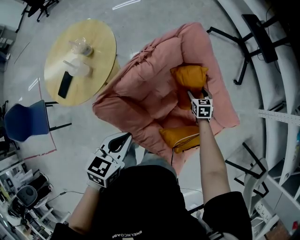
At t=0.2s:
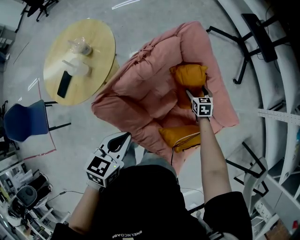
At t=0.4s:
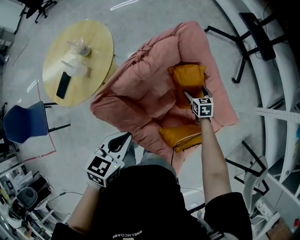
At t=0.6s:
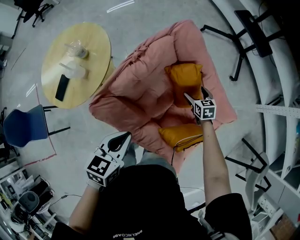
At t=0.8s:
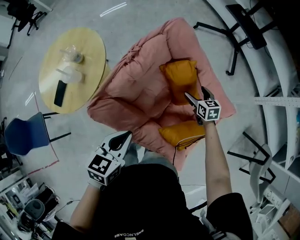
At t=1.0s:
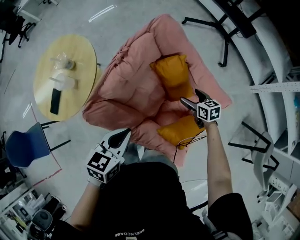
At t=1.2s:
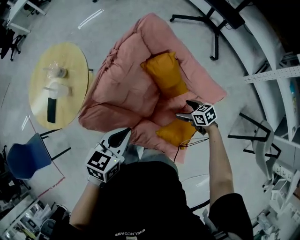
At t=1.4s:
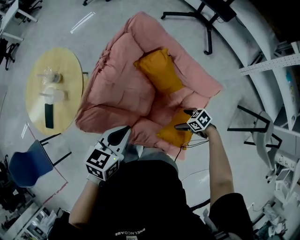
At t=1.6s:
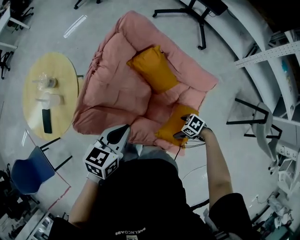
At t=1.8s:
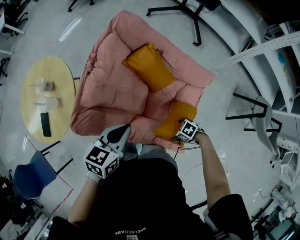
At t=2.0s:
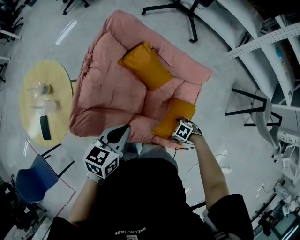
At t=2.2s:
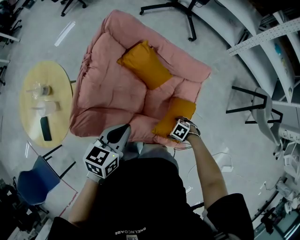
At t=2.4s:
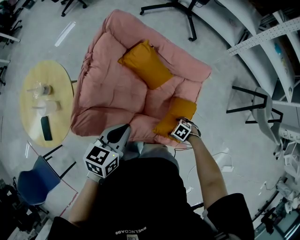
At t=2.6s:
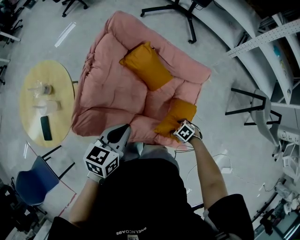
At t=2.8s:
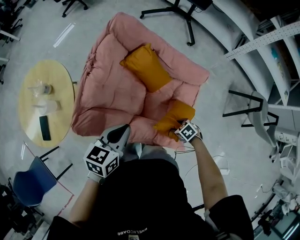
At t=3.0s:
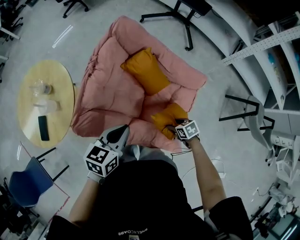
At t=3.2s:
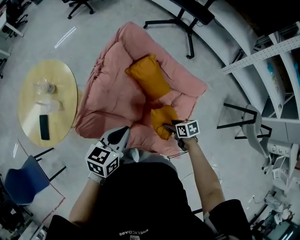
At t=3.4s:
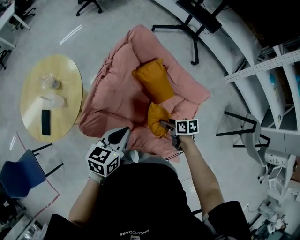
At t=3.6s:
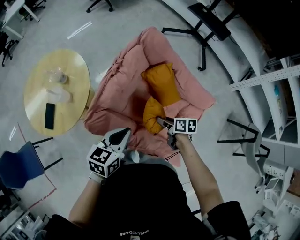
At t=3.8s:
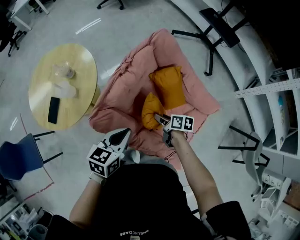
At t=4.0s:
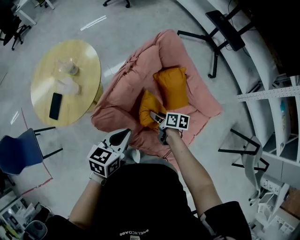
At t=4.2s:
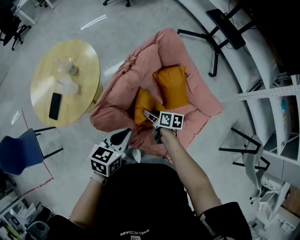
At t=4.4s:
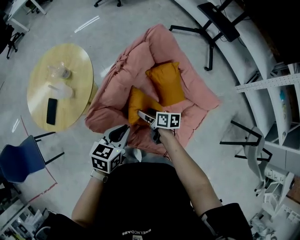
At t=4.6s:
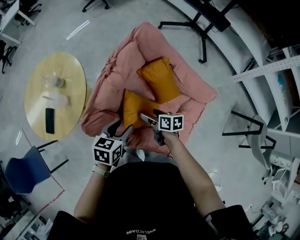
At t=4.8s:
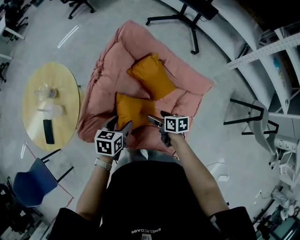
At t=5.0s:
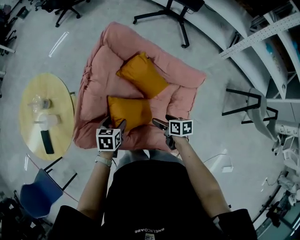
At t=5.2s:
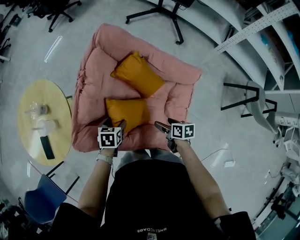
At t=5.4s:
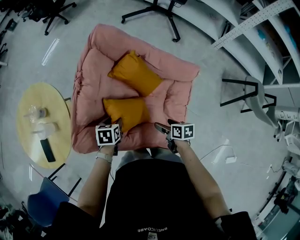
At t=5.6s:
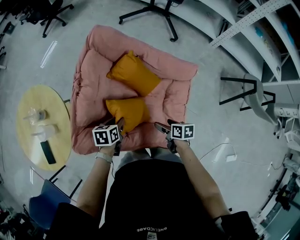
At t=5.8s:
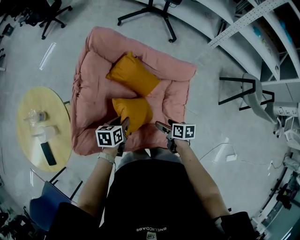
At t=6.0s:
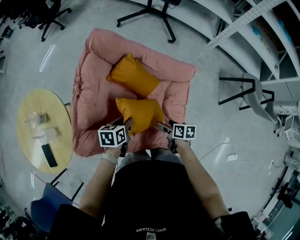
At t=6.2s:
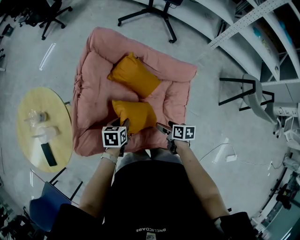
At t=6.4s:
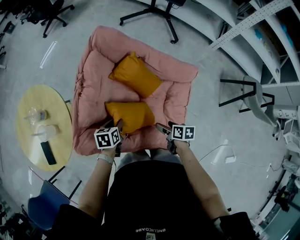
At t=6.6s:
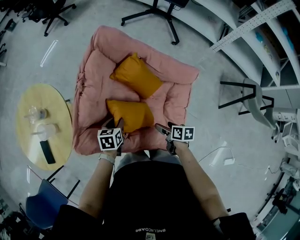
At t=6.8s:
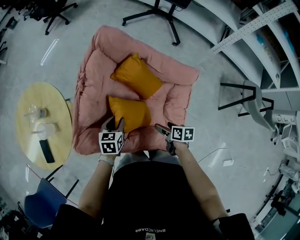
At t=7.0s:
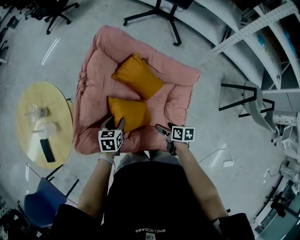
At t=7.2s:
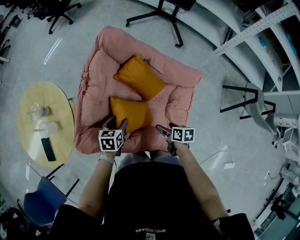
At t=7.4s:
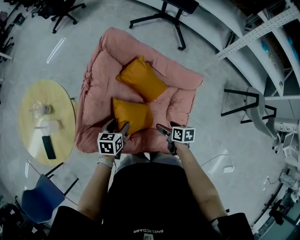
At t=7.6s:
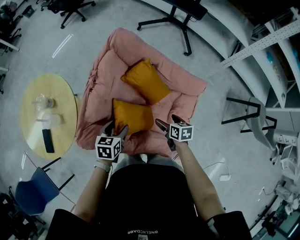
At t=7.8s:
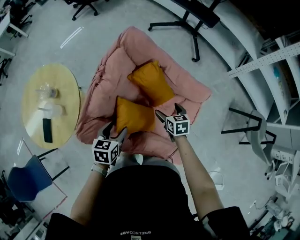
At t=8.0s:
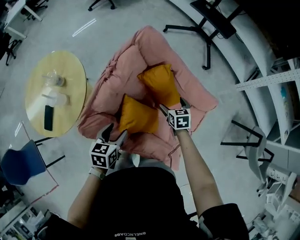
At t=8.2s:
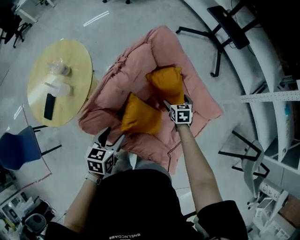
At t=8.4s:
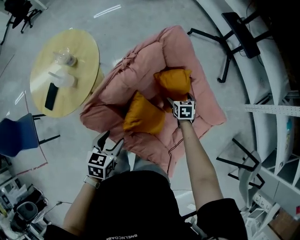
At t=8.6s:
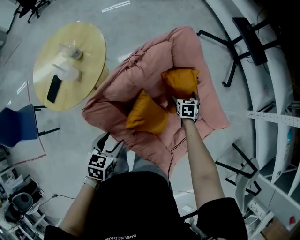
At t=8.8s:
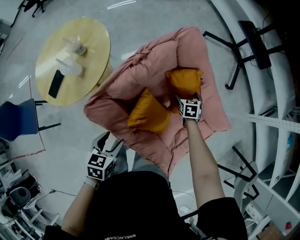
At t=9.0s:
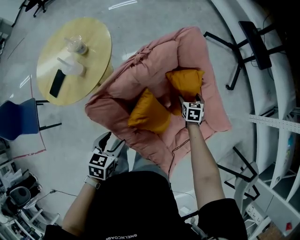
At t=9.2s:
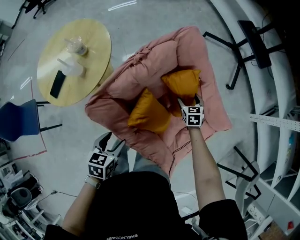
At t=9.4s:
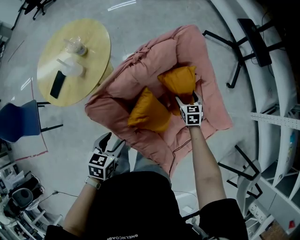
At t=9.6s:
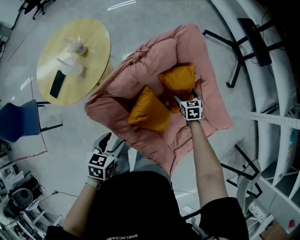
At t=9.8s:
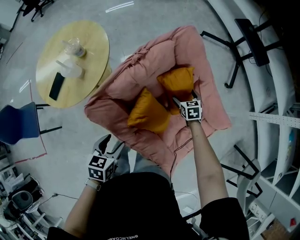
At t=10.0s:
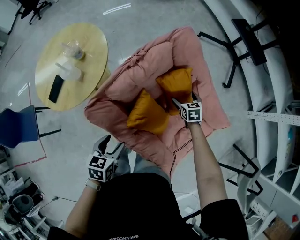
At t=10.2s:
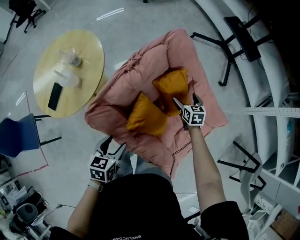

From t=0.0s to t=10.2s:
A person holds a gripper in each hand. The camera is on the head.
From t=0.0s to t=1.4s: The right gripper ends up roughly 25 cm from where it was, and rotates about 40 degrees. Meanwhile the left gripper moves some 5 cm, and rotates roughly 20 degrees.
From t=1.4s to t=3.0s: The right gripper swivels about 30 degrees, and closes up.
From t=3.0s to t=4.4s: The right gripper is displaced to the left and forward by approximately 25 cm, and swivels some 40 degrees, while the left gripper shifts approximately 5 cm to the left.
From t=4.4s to t=5.8s: The right gripper shifts by some 25 cm, and rotates approximately 30 degrees. The left gripper travels downward by roughly 15 cm, changes its angle by some 20 degrees, and opens, then closes once more.
From t=5.8s to t=7.2s: The left gripper changes place by some 5 cm, and opens its fingers.
From t=7.2s to t=8.8s: The right gripper goes approximately 30 cm forward, and rolls counterclockwise, seen from behind, by roughly 50 degrees. Meanwhile the left gripper moves backward, upward and to the left, roughly 15 cm, and turns by about 30 degrees.
From t=8.8s to t=10.2s: The right gripper shifts roughly 5 cm upward.

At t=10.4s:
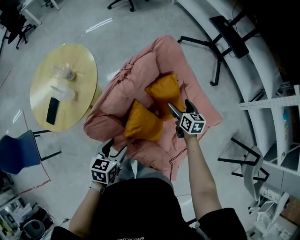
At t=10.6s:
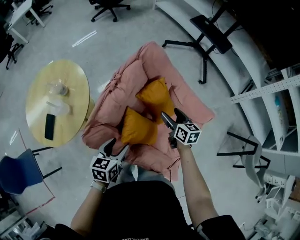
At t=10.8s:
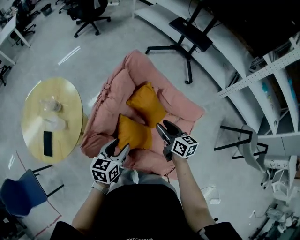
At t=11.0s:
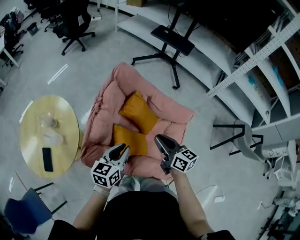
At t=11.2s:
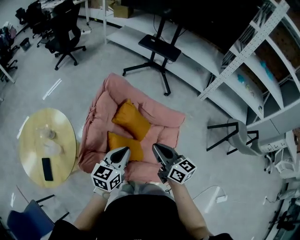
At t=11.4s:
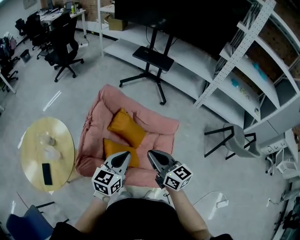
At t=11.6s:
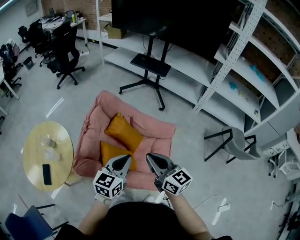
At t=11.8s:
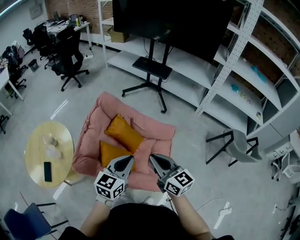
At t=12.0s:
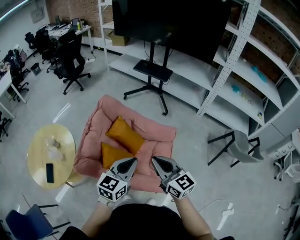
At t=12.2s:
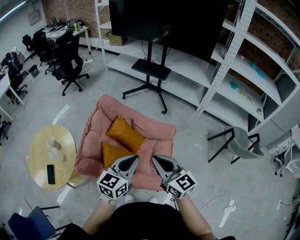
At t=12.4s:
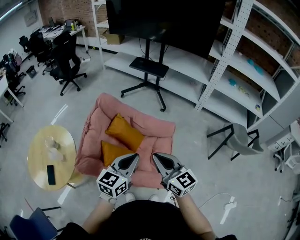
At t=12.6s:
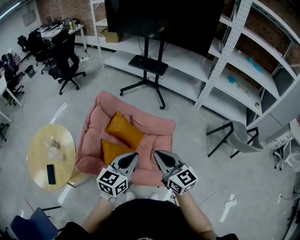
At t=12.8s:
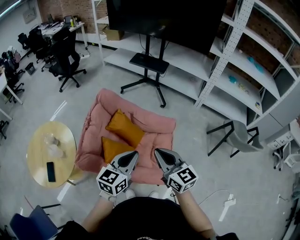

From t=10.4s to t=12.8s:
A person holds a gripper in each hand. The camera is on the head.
From t=10.4s to t=11.6s: The right gripper travels upward and backward by roughly 40 cm, rotates some 30 degrees, and closes, while the left gripper heads upward and to the right, covering approximately 30 cm, changes its angle by some 50 degrees, and closes its fingers.
From t=11.6s to t=12.8s: The left gripper changes place by about 5 cm. Meanwhile the right gripper ends up roughly 5 cm from where it was.

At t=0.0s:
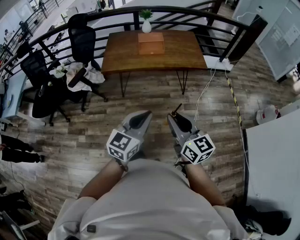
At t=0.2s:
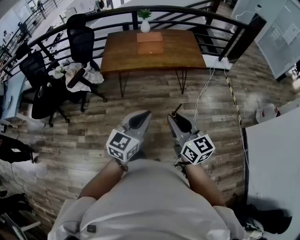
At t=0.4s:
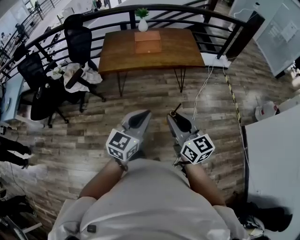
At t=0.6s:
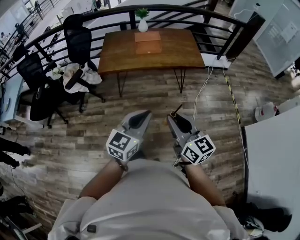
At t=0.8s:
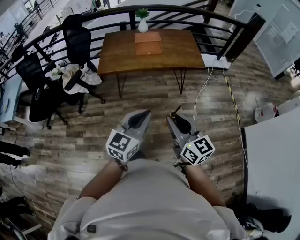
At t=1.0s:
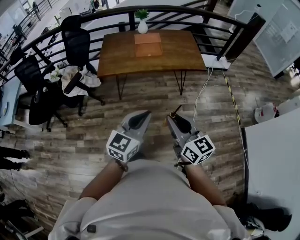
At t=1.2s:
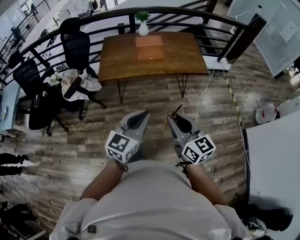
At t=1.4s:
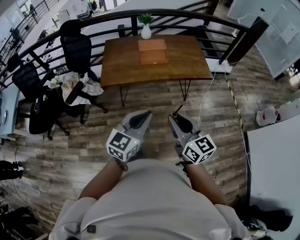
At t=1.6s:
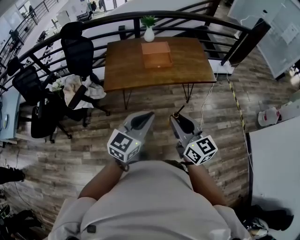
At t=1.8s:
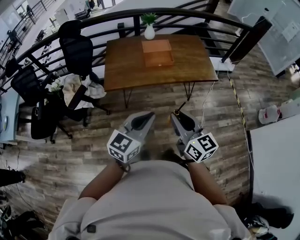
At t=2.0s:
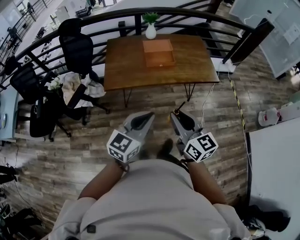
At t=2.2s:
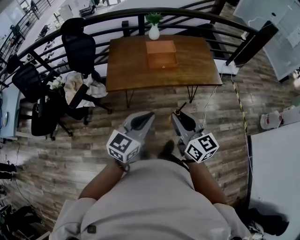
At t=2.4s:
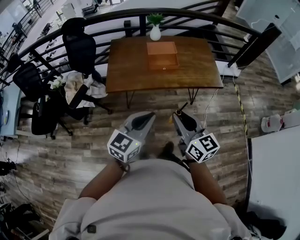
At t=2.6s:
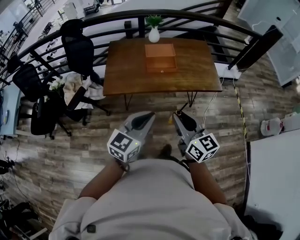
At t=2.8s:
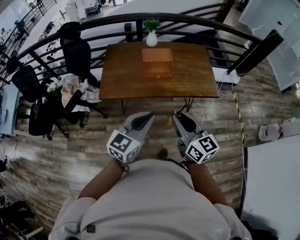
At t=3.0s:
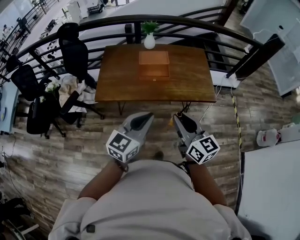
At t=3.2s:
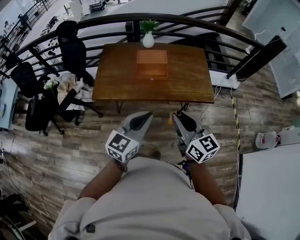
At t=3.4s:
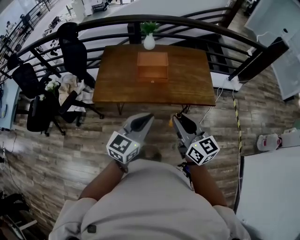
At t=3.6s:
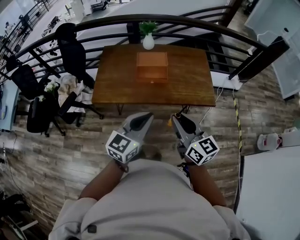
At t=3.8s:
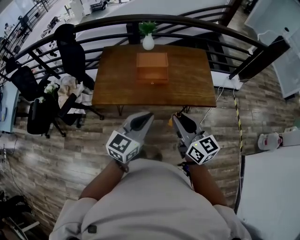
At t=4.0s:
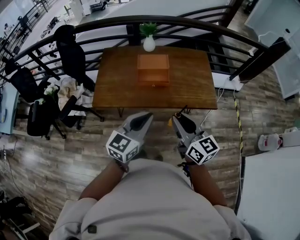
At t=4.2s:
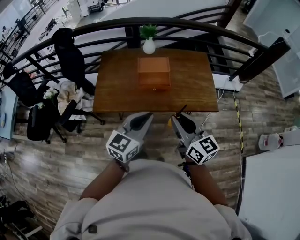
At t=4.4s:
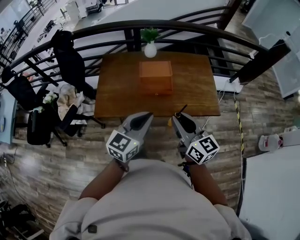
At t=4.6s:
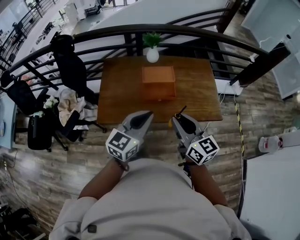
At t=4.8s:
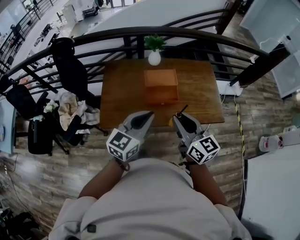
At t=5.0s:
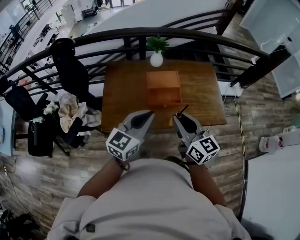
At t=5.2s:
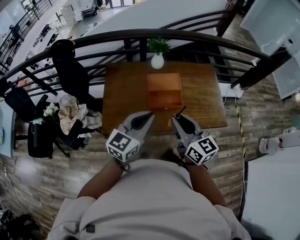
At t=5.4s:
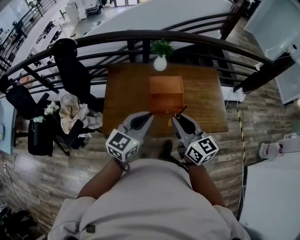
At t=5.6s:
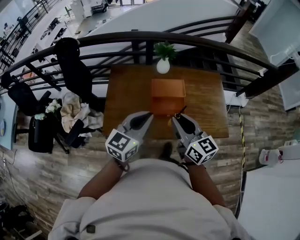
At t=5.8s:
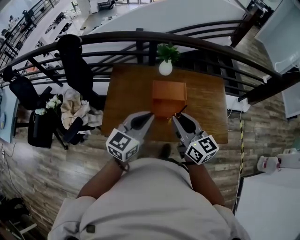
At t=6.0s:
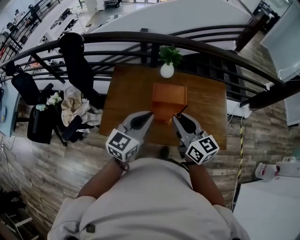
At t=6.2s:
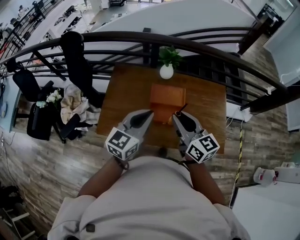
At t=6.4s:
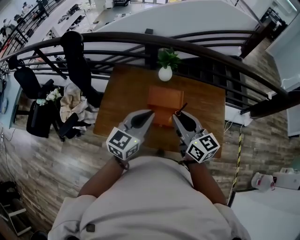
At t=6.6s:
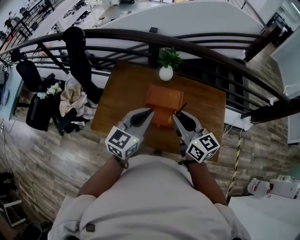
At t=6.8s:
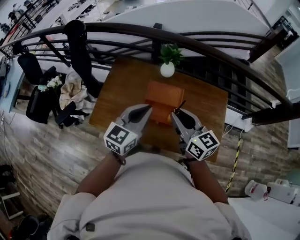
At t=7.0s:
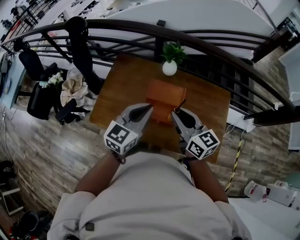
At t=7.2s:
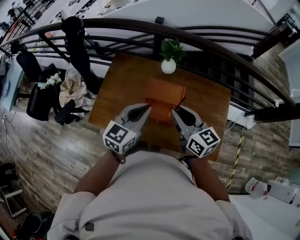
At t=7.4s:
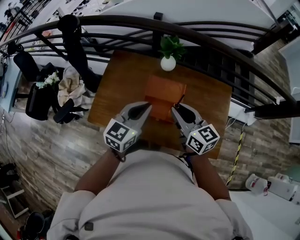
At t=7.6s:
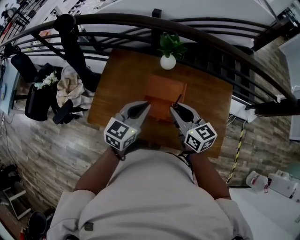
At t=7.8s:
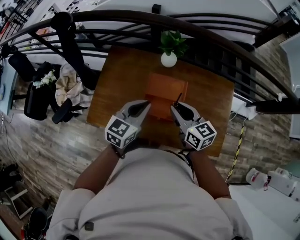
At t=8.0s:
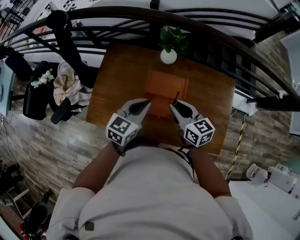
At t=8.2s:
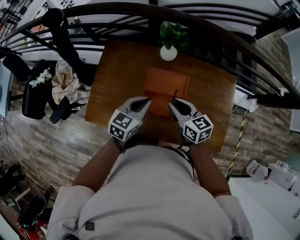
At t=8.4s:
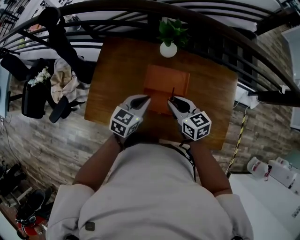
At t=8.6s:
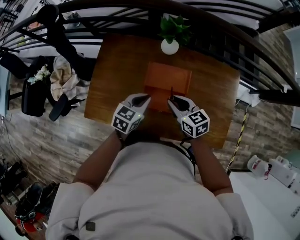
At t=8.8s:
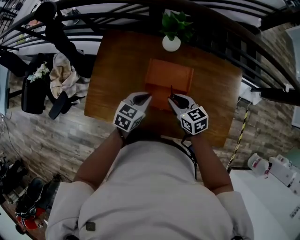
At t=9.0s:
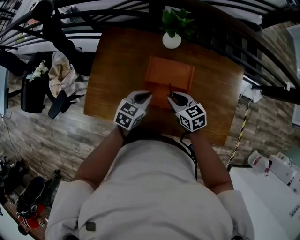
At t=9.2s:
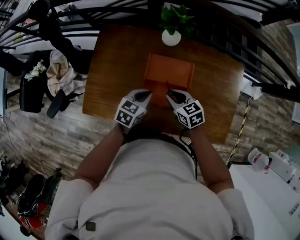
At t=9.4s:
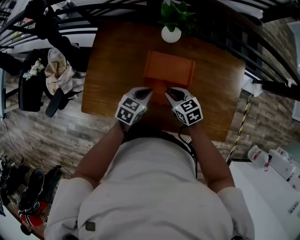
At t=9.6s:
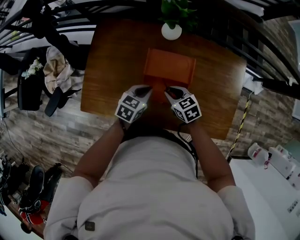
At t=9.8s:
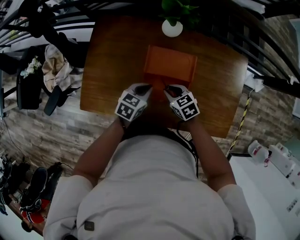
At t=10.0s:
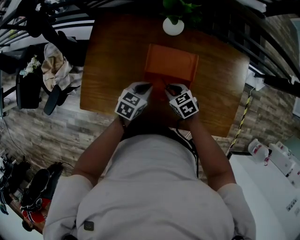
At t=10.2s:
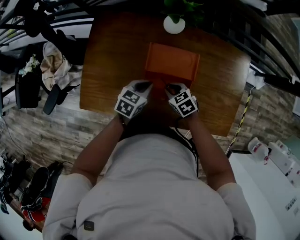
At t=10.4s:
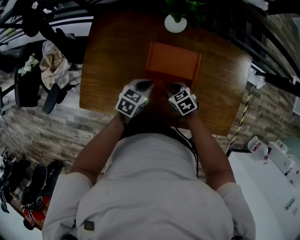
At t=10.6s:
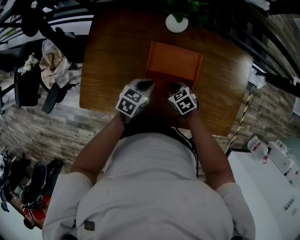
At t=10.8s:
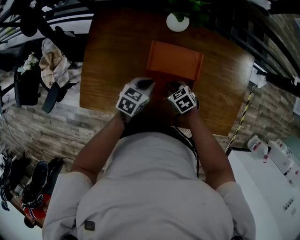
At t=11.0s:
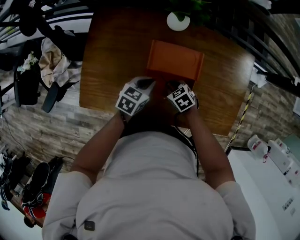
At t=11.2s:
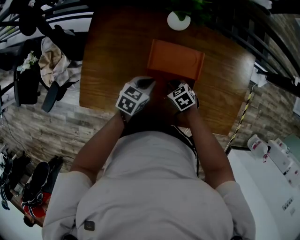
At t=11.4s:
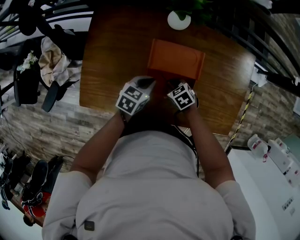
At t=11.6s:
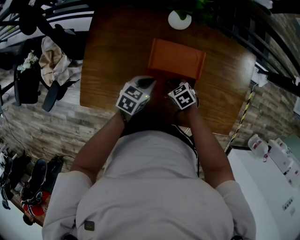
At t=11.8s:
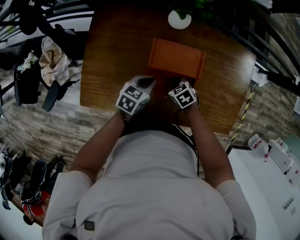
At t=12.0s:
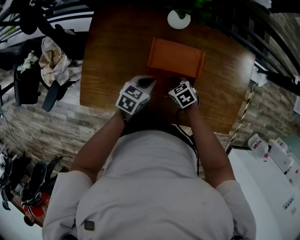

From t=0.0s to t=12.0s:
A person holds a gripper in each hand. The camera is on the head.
From t=0.0s to t=1.6s: Both grippers move forward and to the left, about 25 cm.
From t=1.6s to t=3.0s: Both grippers travel together forward and to the right, roughly 20 cm.
From t=3.0s to t=4.4s: Both grippers travel together forward, some 15 cm.
From t=4.4s to t=6.0s: The two grippers go some 25 cm forward.
From t=6.0s to t=7.6s: The grippers both shift forward, downward and to the right by some 15 cm.
From t=7.6s to t=9.0s: The grippers both shift downward by approximately 20 cm. The right gripper rotates about 20 degrees; the left gripper swivels approximately 20 degrees.
From t=9.0s to t=10.4s: The right gripper travels downward by some 15 cm, and changes its angle by about 20 degrees. The left gripper is displaced downward by roughly 10 cm.
From t=10.4s to t=12.0s: The grippers stay close to where they were, moving slightly.
